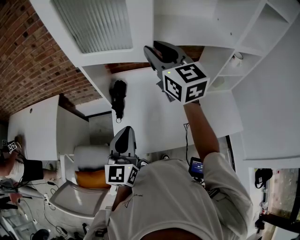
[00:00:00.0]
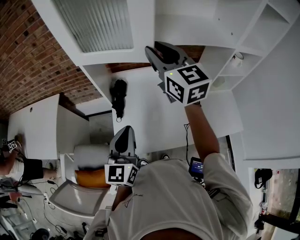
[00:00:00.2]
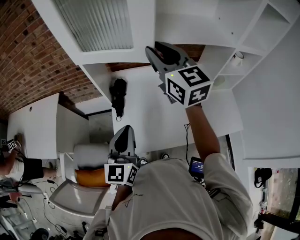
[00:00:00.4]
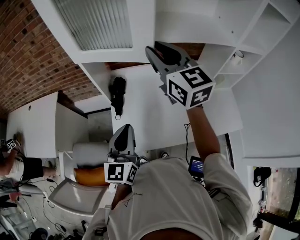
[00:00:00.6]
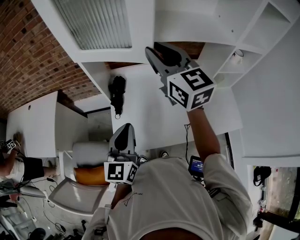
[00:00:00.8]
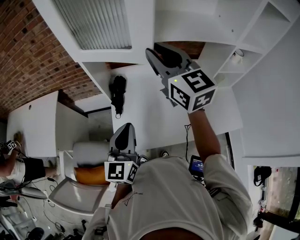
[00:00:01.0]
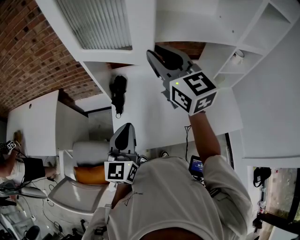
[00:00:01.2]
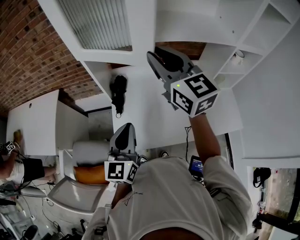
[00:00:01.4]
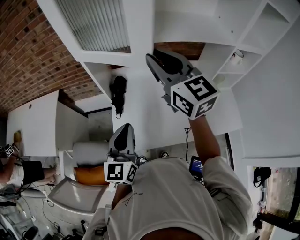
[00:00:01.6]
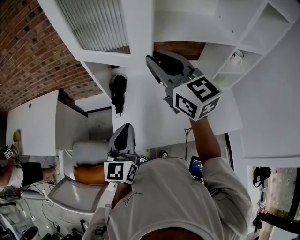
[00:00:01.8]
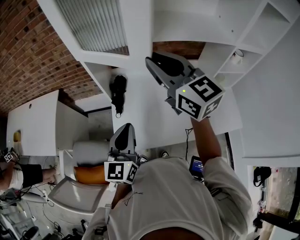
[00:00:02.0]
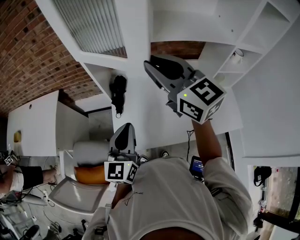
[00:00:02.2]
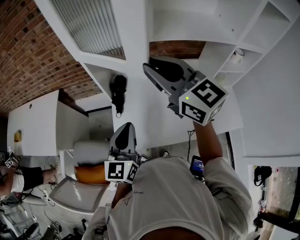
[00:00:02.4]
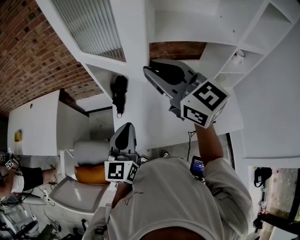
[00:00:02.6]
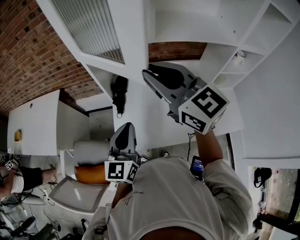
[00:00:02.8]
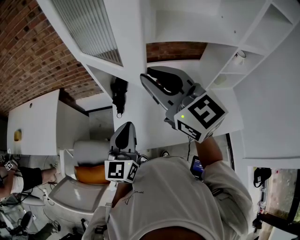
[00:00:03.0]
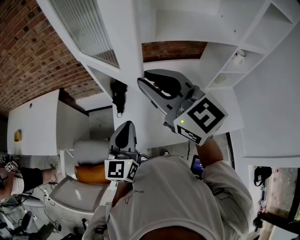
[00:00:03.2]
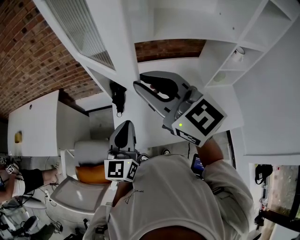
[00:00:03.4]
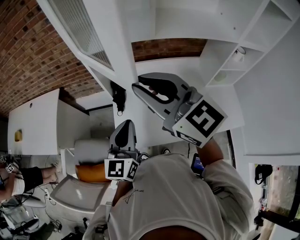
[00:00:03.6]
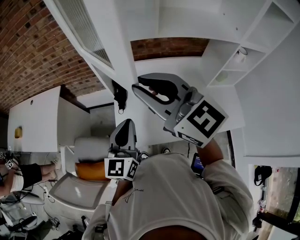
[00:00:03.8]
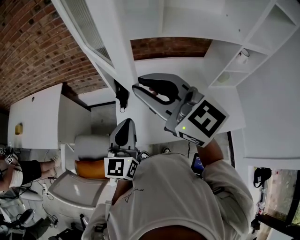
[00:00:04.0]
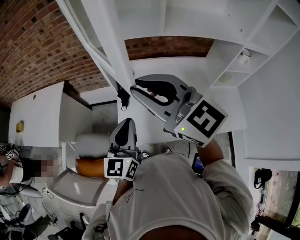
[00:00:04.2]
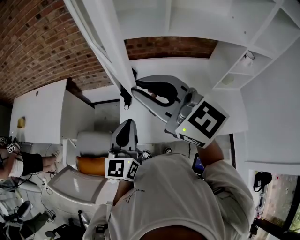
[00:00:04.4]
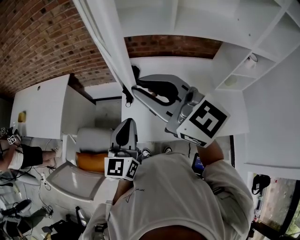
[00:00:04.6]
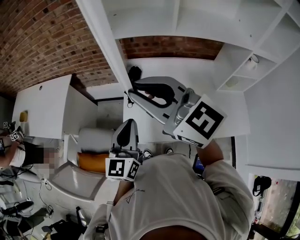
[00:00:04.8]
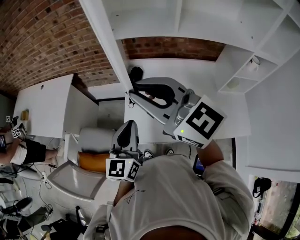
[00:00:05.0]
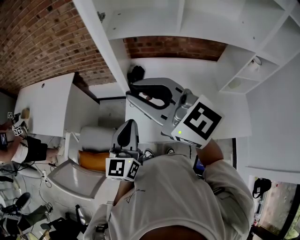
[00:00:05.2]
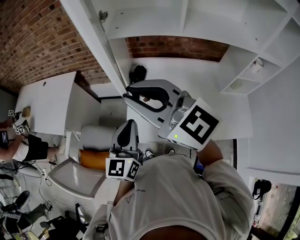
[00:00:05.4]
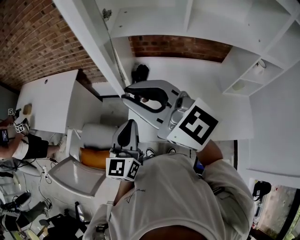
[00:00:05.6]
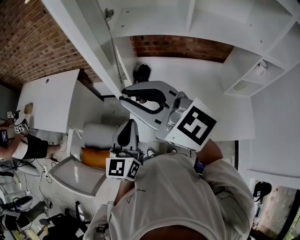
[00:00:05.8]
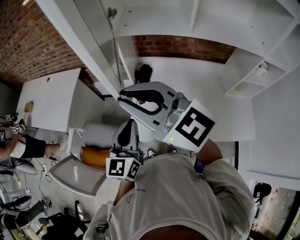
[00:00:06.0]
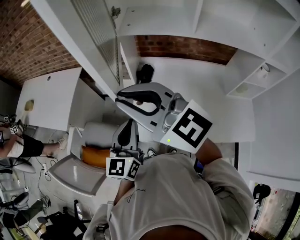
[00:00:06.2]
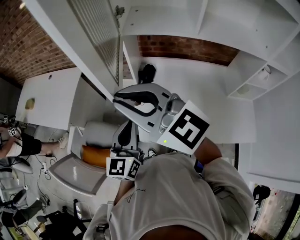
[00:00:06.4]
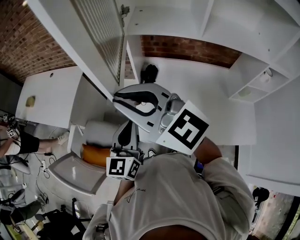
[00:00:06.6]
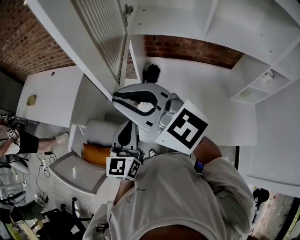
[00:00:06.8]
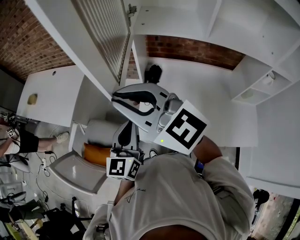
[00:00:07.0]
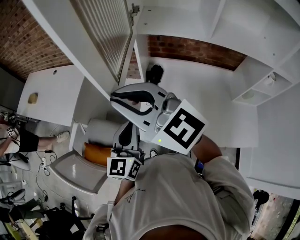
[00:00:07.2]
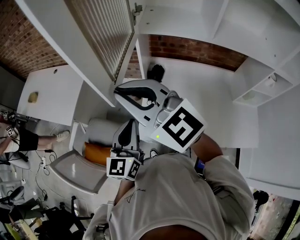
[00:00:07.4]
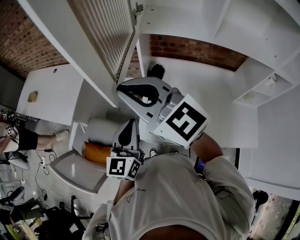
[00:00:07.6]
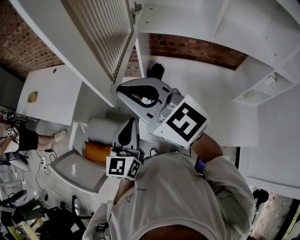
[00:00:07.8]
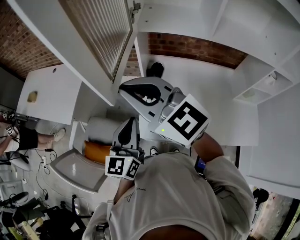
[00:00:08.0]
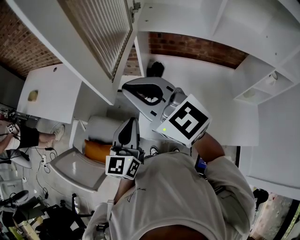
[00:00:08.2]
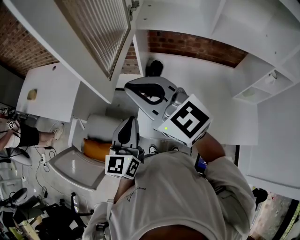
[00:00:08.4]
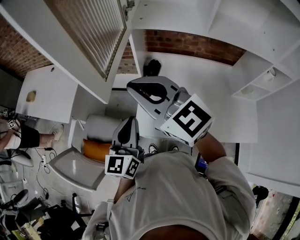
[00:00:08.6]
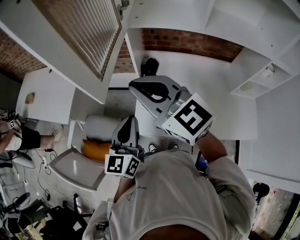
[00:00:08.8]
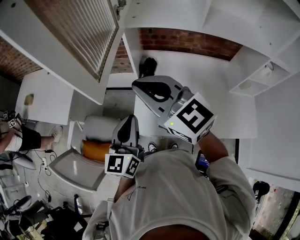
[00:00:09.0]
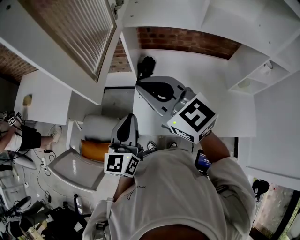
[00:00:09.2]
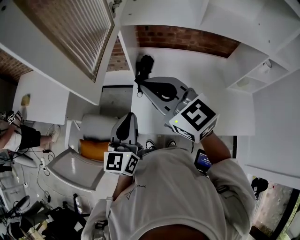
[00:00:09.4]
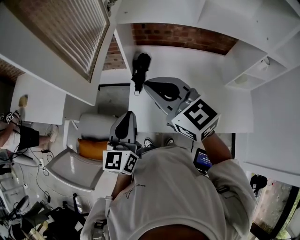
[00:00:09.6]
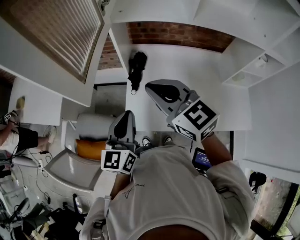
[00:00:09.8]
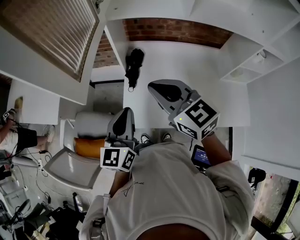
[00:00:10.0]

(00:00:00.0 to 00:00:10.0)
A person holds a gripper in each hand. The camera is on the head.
00:00:00.0 - 00:00:01.4: The right gripper shifts by about 5 cm.
00:00:01.4 - 00:00:02.8: The right gripper goes approximately 5 cm backward.
00:00:02.8 - 00:00:04.2: The right gripper goes about 10 cm to the left and backward.
00:00:04.2 - 00:00:05.8: The right gripper shifts approximately 10 cm to the left. Meanwhile the left gripper goes about 5 cm to the left.
00:00:05.8 - 00:00:07.2: The right gripper shifts approximately 10 cm to the left. Meanwhile the left gripper moves to the left, some 5 cm.
00:00:07.2 - 00:00:08.6: The right gripper heads to the right, covering approximately 5 cm.
00:00:08.6 - 00:00:10.0: The right gripper travels to the right and downward by about 15 cm.

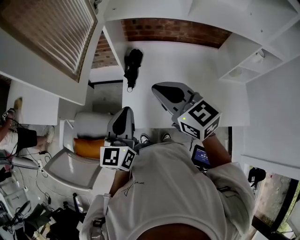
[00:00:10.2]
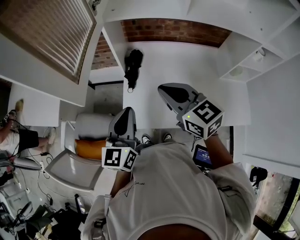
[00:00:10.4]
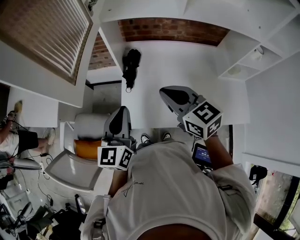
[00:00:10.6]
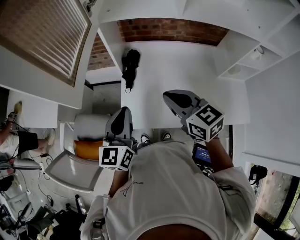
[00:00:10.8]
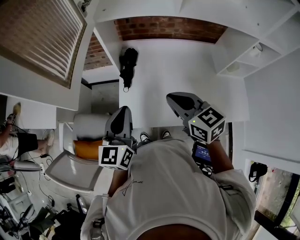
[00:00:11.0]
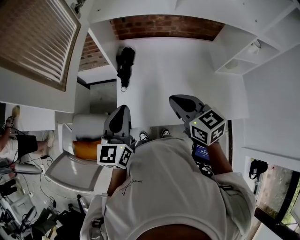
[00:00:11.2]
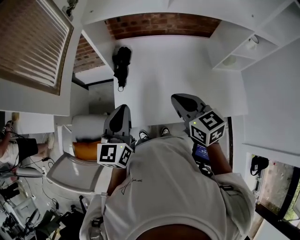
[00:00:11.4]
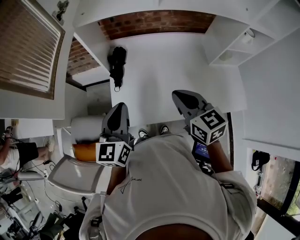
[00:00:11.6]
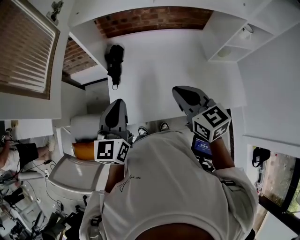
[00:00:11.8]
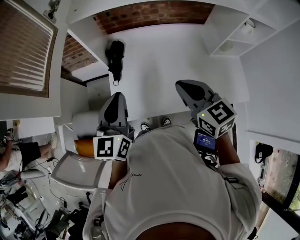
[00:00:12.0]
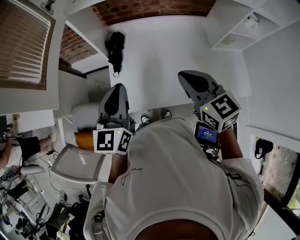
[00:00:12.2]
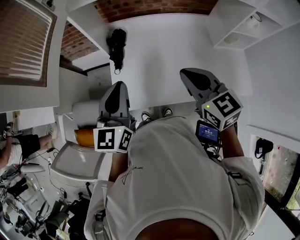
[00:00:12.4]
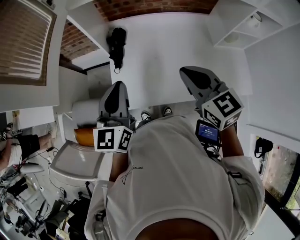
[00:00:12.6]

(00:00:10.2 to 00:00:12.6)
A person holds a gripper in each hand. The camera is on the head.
00:00:10.2 - 00:00:11.4: The right gripper heads to the right and downward, covering some 15 cm, and rotates approximately 20 degrees.
00:00:11.4 - 00:00:12.6: The grippers move only a little.

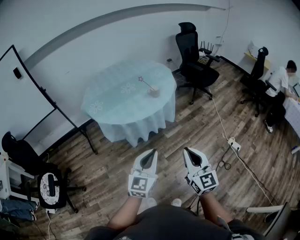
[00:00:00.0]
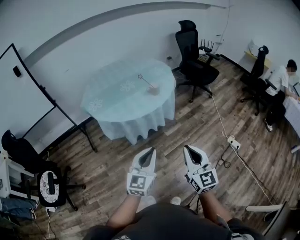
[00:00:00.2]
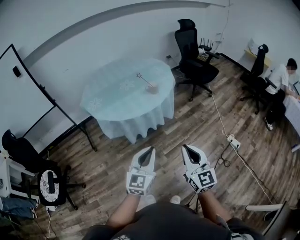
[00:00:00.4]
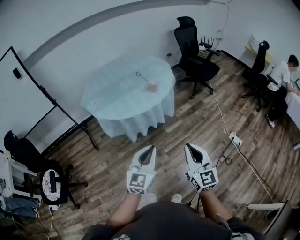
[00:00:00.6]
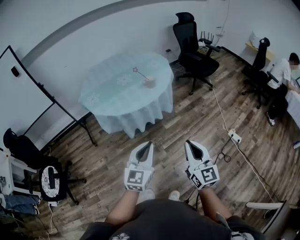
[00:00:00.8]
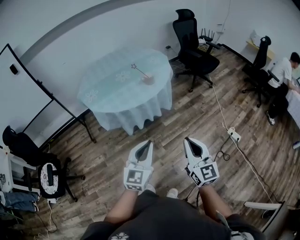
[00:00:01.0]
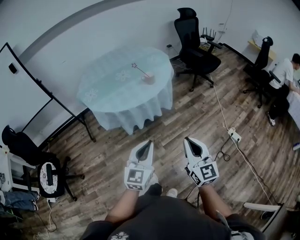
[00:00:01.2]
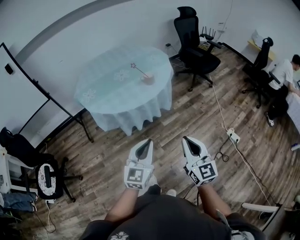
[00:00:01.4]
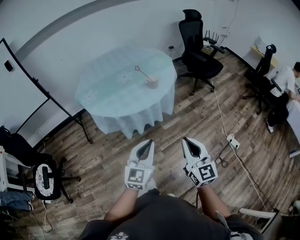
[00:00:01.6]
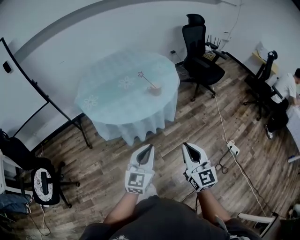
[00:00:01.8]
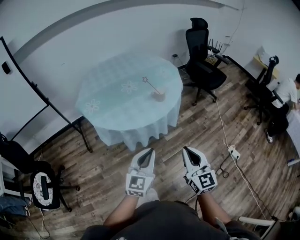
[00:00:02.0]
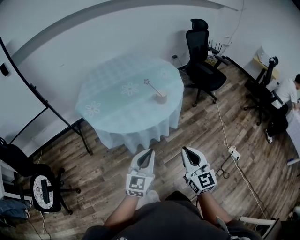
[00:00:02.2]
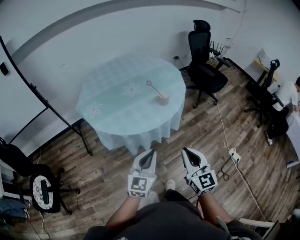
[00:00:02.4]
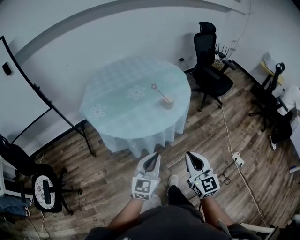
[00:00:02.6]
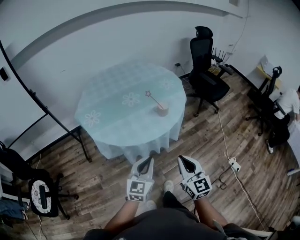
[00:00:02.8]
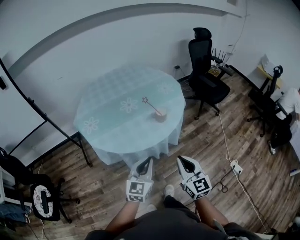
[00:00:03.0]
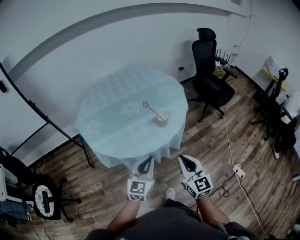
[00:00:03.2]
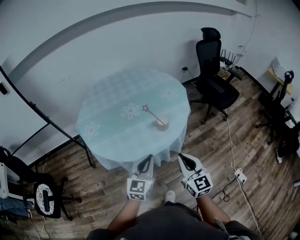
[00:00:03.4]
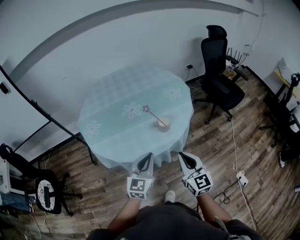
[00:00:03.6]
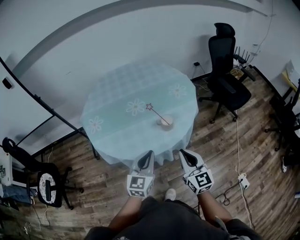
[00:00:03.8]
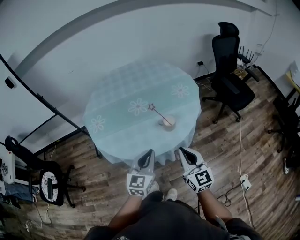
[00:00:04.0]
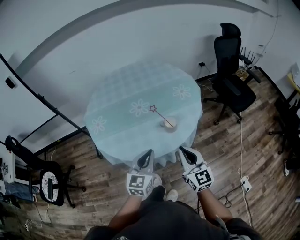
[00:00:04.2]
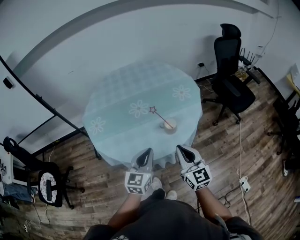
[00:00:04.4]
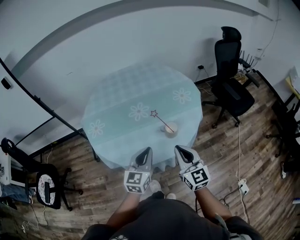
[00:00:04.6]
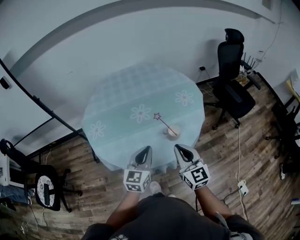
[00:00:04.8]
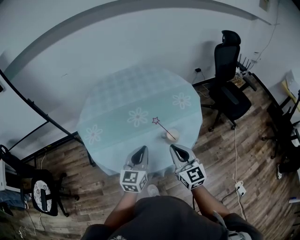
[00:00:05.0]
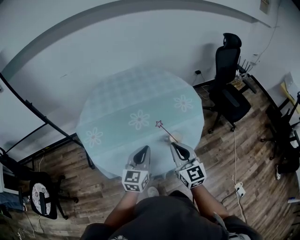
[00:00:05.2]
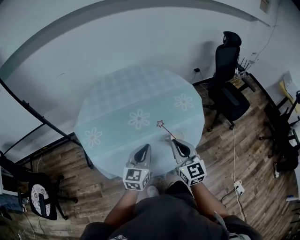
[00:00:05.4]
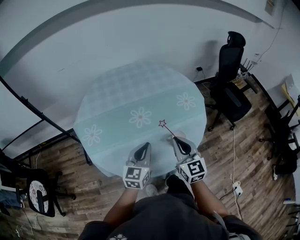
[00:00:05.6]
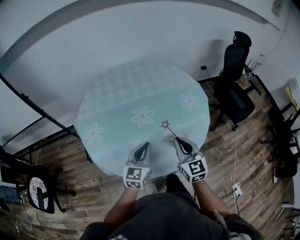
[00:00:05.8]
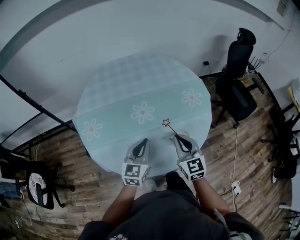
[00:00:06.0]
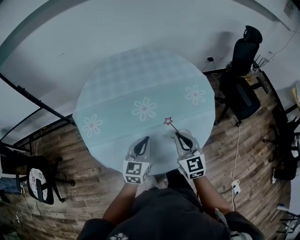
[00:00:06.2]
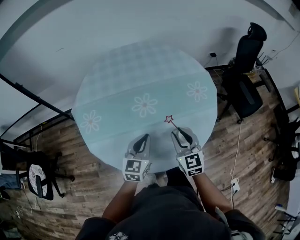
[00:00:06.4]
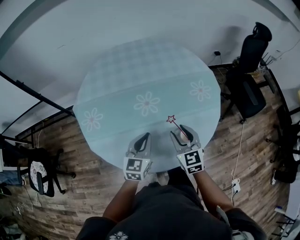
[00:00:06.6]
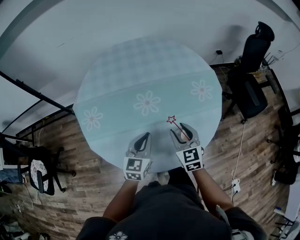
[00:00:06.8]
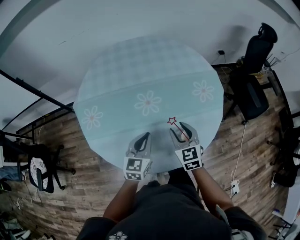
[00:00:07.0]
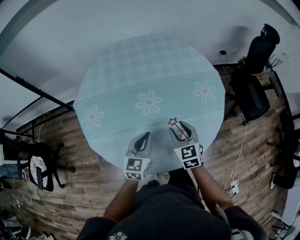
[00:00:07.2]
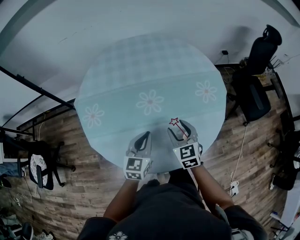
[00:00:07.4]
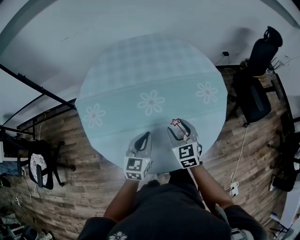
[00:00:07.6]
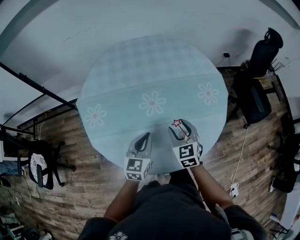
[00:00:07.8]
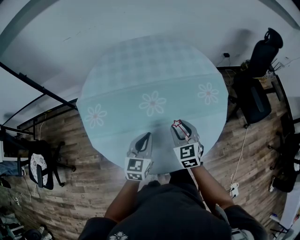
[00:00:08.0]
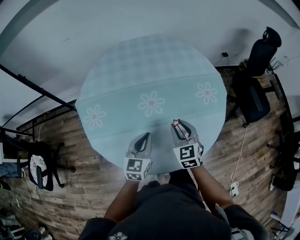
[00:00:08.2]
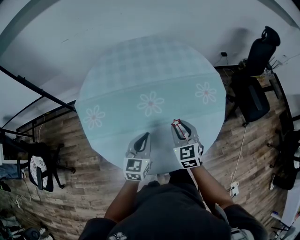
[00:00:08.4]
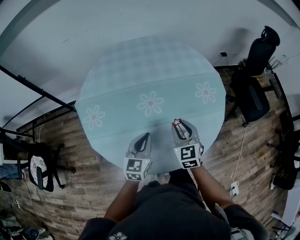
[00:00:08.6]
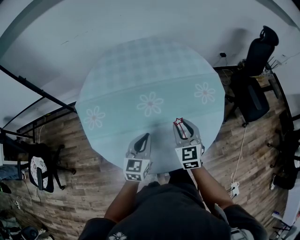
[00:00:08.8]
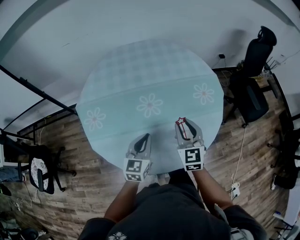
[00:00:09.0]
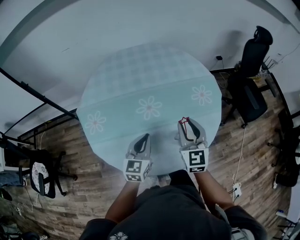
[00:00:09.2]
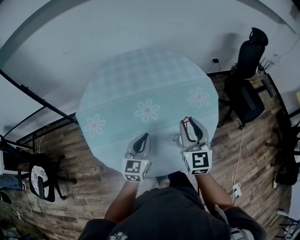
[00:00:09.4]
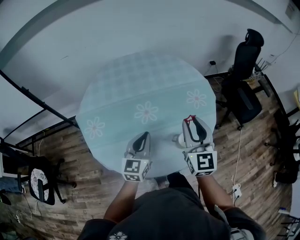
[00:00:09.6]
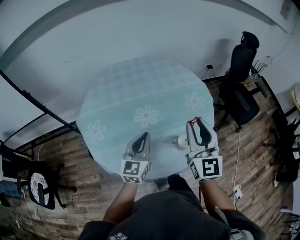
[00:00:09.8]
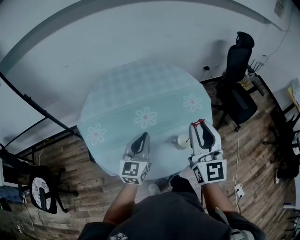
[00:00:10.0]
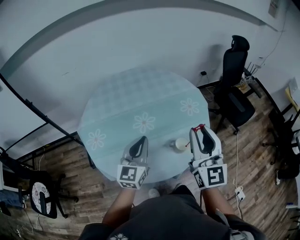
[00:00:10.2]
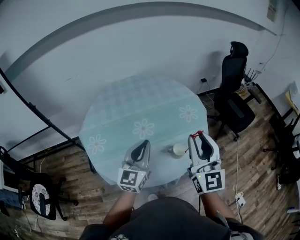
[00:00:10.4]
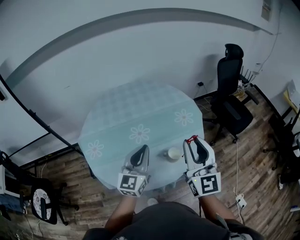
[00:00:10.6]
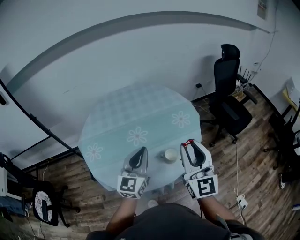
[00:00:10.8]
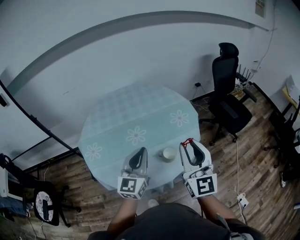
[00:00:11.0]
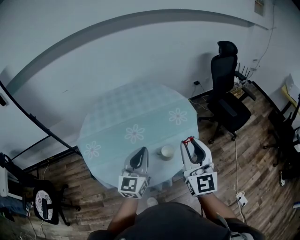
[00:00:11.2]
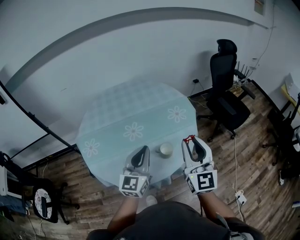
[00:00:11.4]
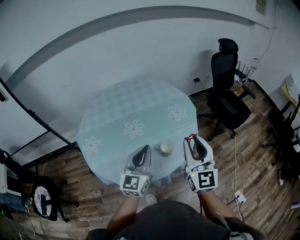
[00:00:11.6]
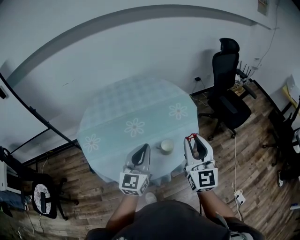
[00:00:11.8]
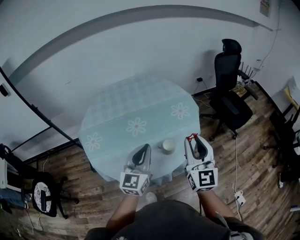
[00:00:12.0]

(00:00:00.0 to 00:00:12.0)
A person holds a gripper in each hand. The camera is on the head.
00:00:00.0 - 00:00:01.6: The grippers both shift forward by approximately 10 cm.
00:00:01.6 - 00:00:03.0: Both grippers travel together forward, some 20 cm.
00:00:03.0 - 00:00:04.4: The grippers both shift forward by approximately 20 cm.
00:00:04.4 - 00:00:06.0: Both grippers move forward and to the left, about 20 cm.
00:00:06.0 - 00:00:07.6: The left gripper is displaced downward and forward by about 10 cm; the right gripper moves forward and downward, some 15 cm, and opens up.
00:00:07.6 - 00:00:09.0: The right gripper shifts roughly 5 cm upward, and closes up.
00:00:09.0 - 00:00:10.4: The left gripper moves upward, approximately 15 cm, and turns by about 20 degrees; the right gripper heads upward and backward, covering some 25 cm, and rotates approximately 30 degrees.
00:00:10.4 - 00:00:12.0: The right gripper shifts about 10 cm to the right; the left gripper moves to the right and backward, about 10 cm.
